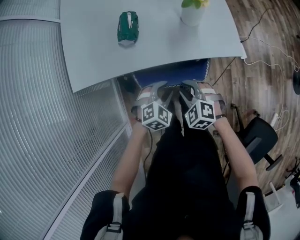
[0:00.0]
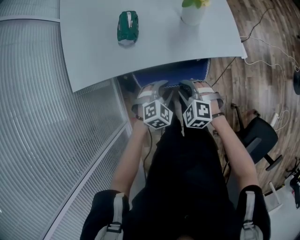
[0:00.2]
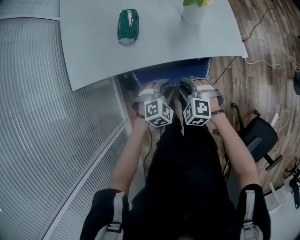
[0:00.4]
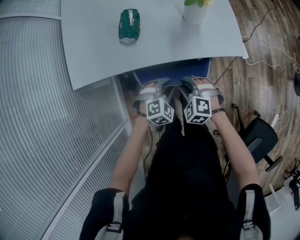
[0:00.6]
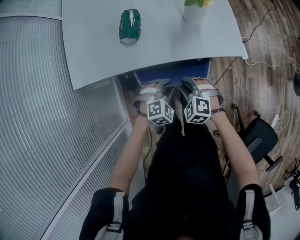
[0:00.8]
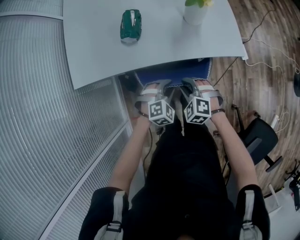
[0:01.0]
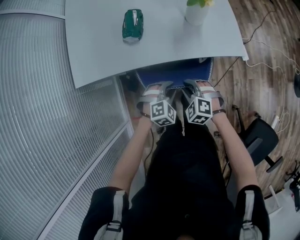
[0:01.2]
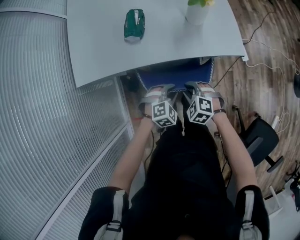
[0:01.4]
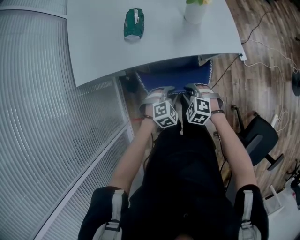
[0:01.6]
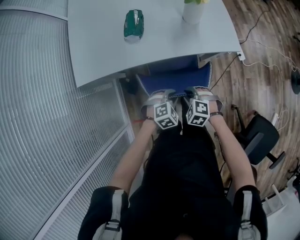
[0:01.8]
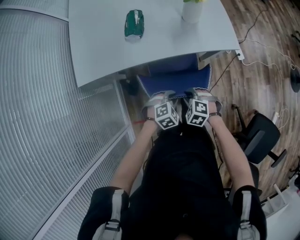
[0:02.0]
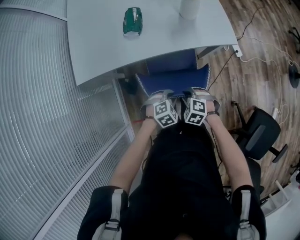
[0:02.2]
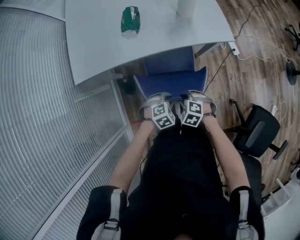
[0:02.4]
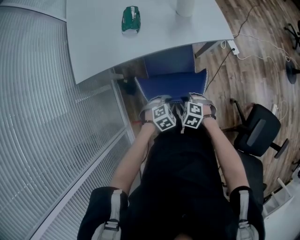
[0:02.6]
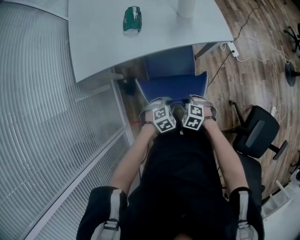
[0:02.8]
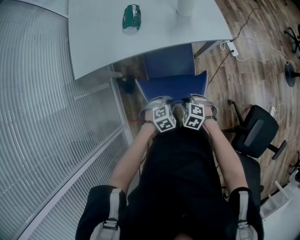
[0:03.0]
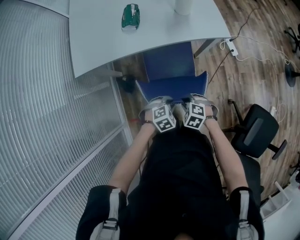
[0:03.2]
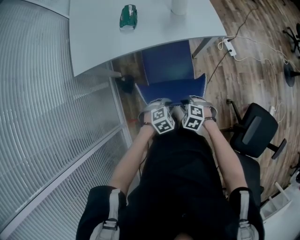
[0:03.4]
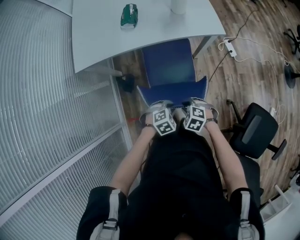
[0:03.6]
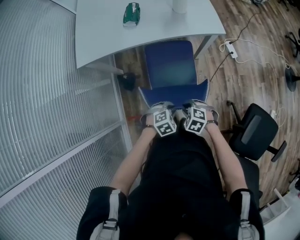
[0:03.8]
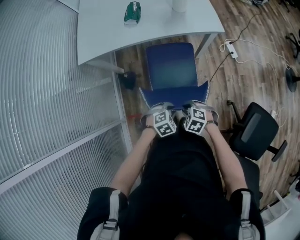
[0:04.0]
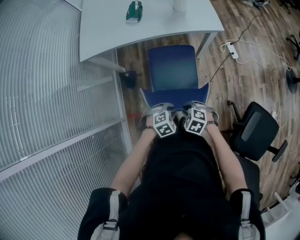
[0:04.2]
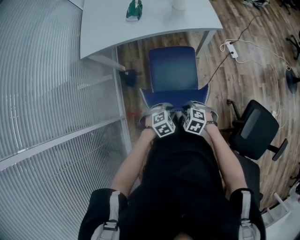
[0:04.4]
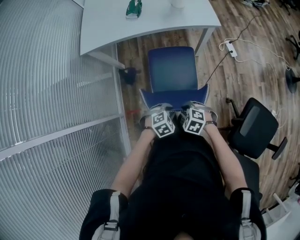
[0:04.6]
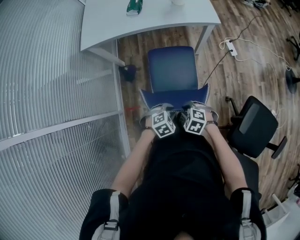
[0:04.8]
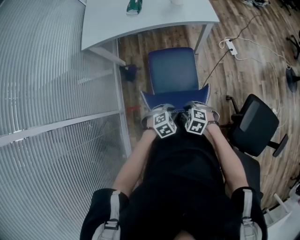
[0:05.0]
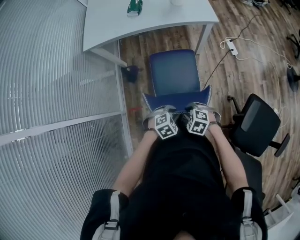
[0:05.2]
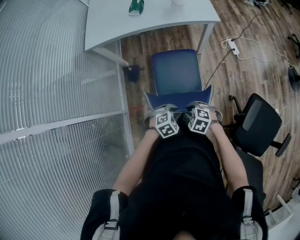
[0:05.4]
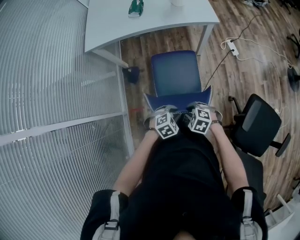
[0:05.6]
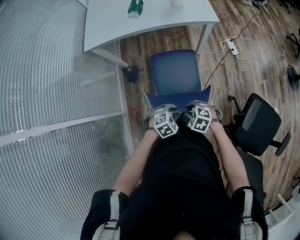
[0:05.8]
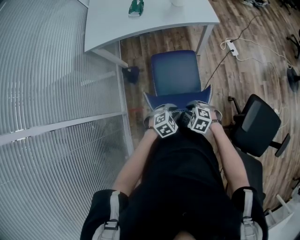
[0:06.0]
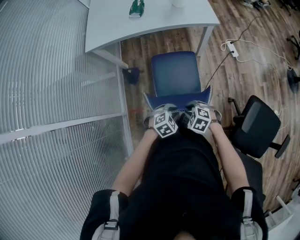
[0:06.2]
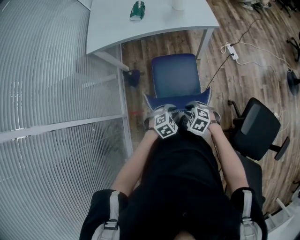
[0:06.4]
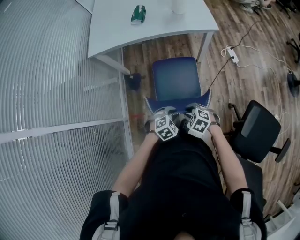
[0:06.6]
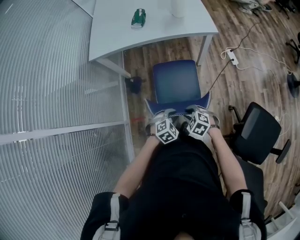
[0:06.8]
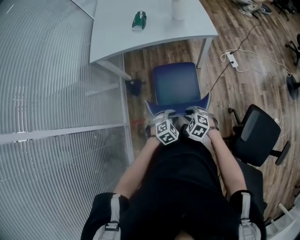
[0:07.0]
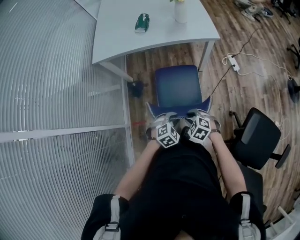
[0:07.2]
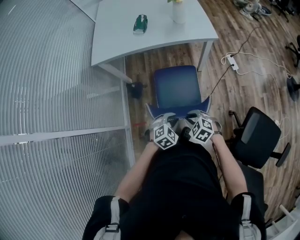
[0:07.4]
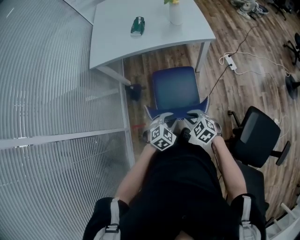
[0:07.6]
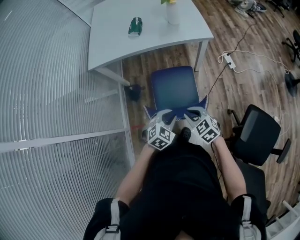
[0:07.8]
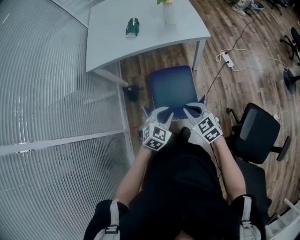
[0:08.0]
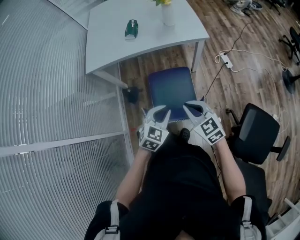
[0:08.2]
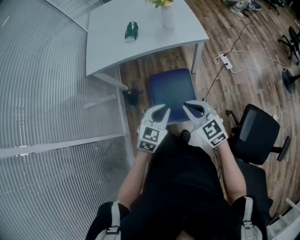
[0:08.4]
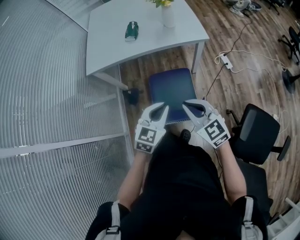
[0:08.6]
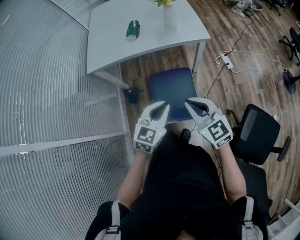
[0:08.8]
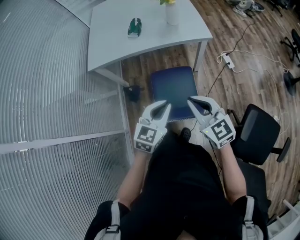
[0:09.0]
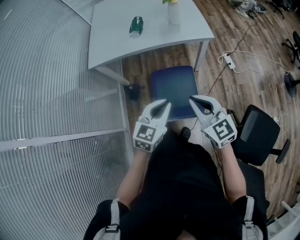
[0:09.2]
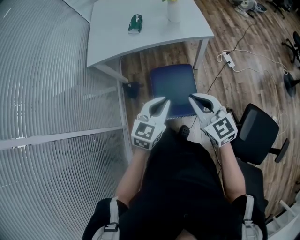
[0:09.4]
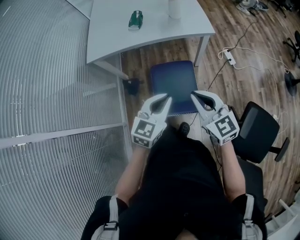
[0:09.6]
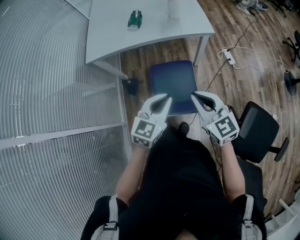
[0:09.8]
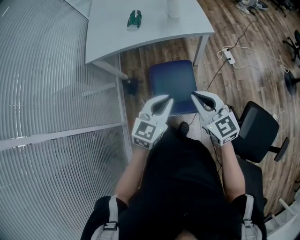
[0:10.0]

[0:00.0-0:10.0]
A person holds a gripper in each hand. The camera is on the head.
0:00.0 to 0:01.4: The right gripper shifts by roughly 5 cm. The left gripper moves some 5 cm.
0:01.4 to 0:02.8: The left gripper moves roughly 15 cm; the right gripper changes place by some 15 cm.
0:02.8 to 0:04.2: The left gripper shifts by some 20 cm; the right gripper ends up some 20 cm from where it was.
0:04.2 to 0:05.8: The left gripper changes place by approximately 10 cm. The right gripper shifts by about 10 cm.
0:05.8 to 0:07.2: There are only small adjustments of the grippers.
0:07.2 to 0:08.6: The grippers both shift upward by approximately 20 cm. The left gripper tips its fingers upward by about 30 degrees. Meanwhile the right gripper tips its fingers upward by about 40 degrees, and closes its fingers.
0:08.6 to 0:10.0: There are only small adjustments of the grippers.

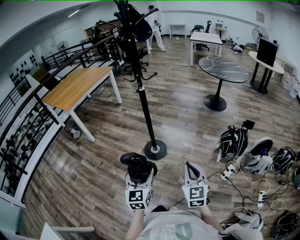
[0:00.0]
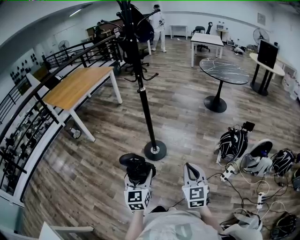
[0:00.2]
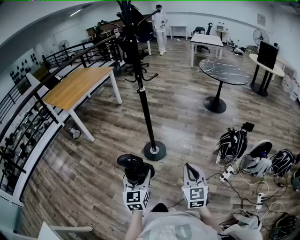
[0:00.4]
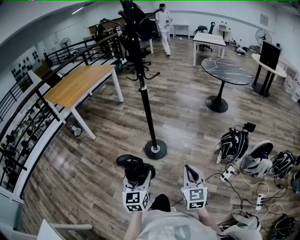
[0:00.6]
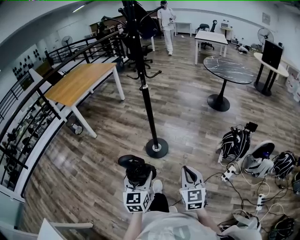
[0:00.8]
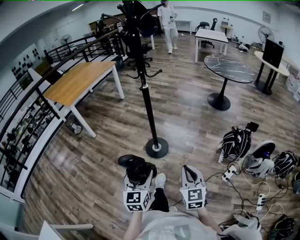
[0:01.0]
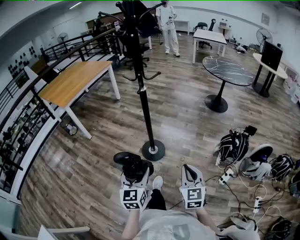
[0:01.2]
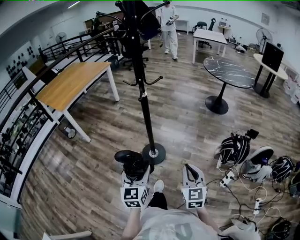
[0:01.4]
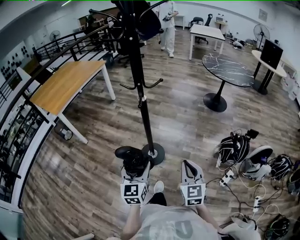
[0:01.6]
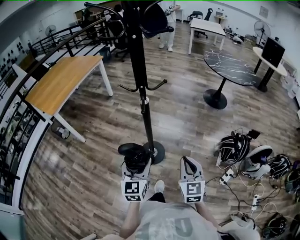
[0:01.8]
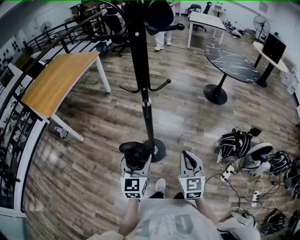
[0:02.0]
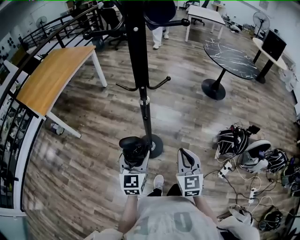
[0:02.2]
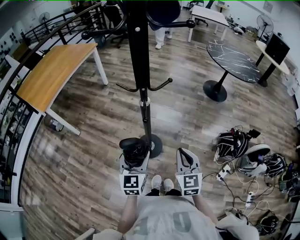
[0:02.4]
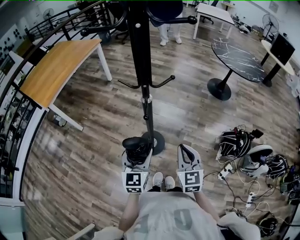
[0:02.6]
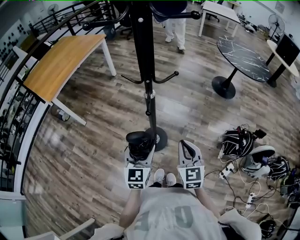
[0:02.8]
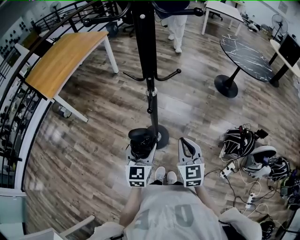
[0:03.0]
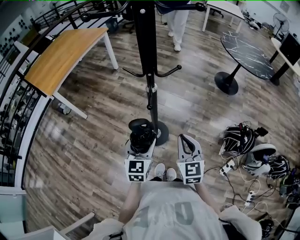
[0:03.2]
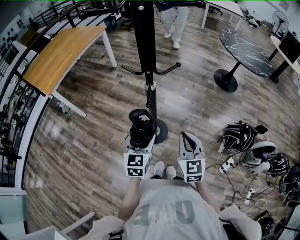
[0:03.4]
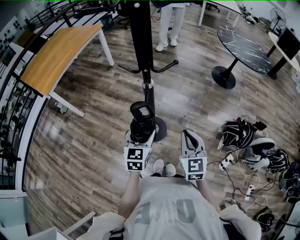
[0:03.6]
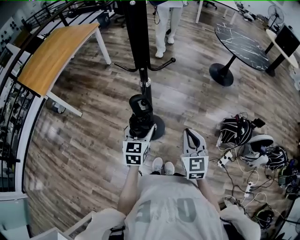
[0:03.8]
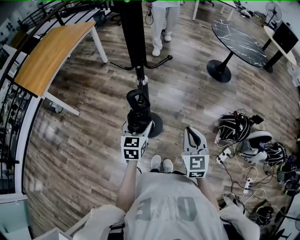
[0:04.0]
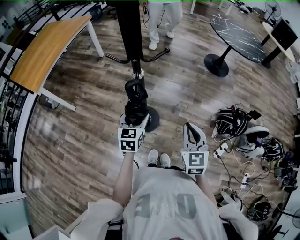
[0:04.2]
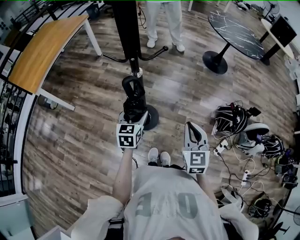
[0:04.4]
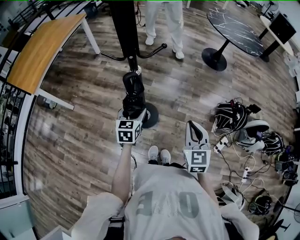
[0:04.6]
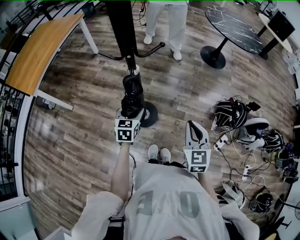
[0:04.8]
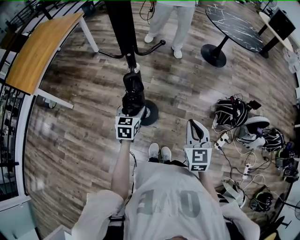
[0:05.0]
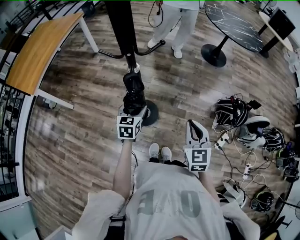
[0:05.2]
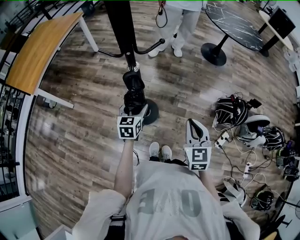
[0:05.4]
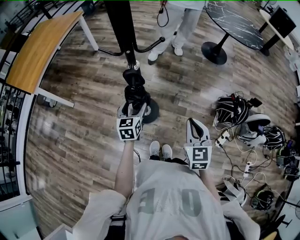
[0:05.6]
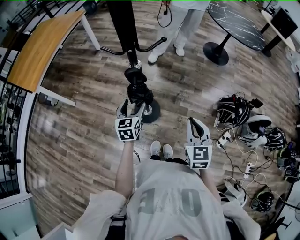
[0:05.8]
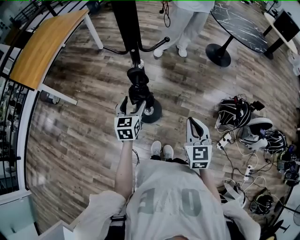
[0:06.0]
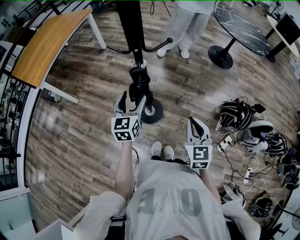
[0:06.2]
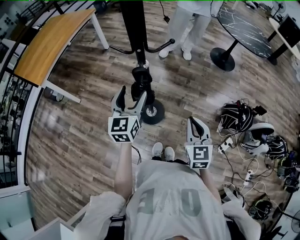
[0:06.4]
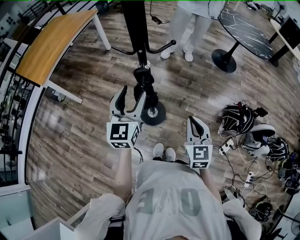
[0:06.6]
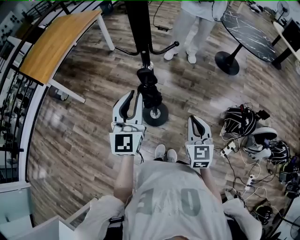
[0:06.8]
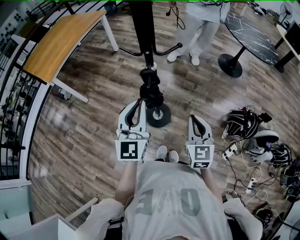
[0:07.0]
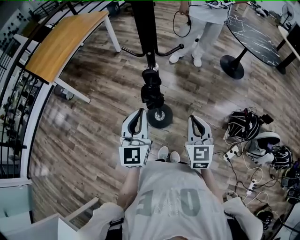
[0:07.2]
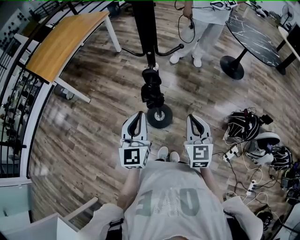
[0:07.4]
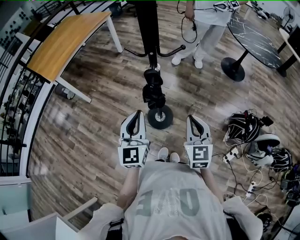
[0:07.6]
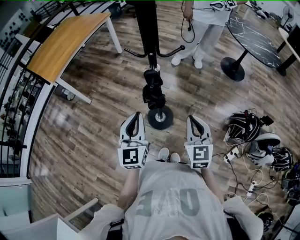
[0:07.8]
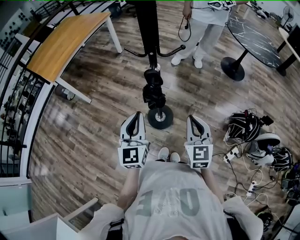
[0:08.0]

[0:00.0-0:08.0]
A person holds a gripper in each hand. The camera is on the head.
0:00.0 to 0:01.6: Both grippers move forward, about 20 cm.
0:01.6 to 0:03.2: The two grippers go approximately 15 cm forward.
0:03.2 to 0:04.8: The left gripper is displaced downward and forward by about 15 cm. Meanwhile the right gripper is displaced to the right by approximately 10 cm.
0:04.8 to 0:06.4: The left gripper moves upward, about 15 cm, and swivels approximately 30 degrees.
0:06.4 to 0:08.0: The left gripper heads backward, covering roughly 10 cm, and closes.

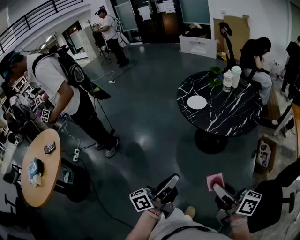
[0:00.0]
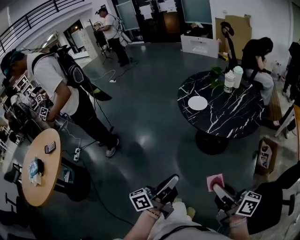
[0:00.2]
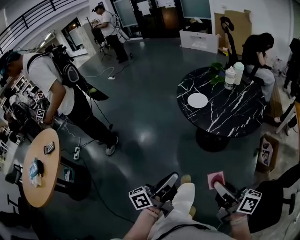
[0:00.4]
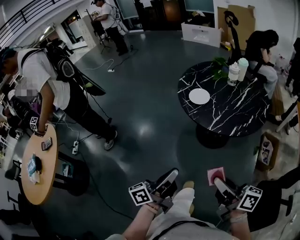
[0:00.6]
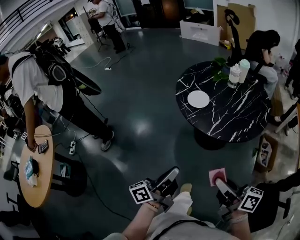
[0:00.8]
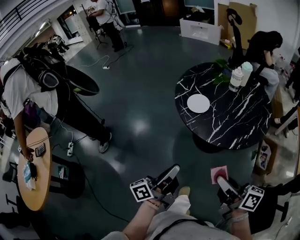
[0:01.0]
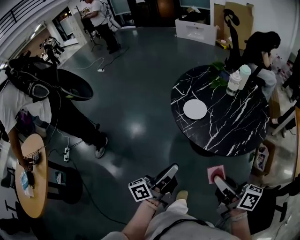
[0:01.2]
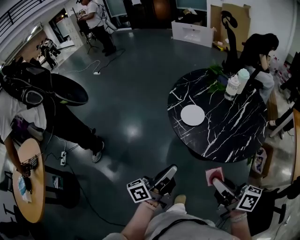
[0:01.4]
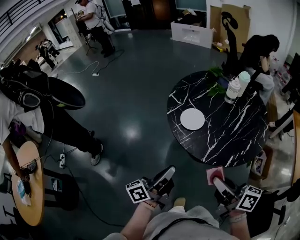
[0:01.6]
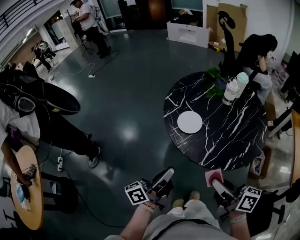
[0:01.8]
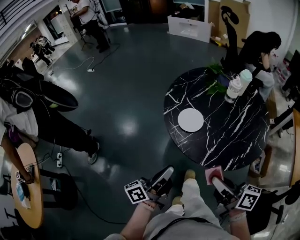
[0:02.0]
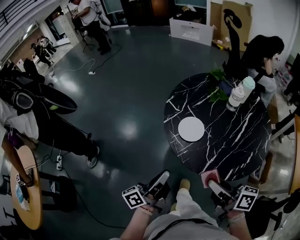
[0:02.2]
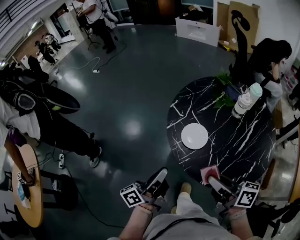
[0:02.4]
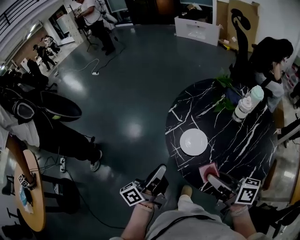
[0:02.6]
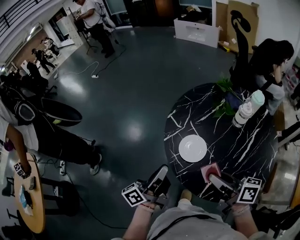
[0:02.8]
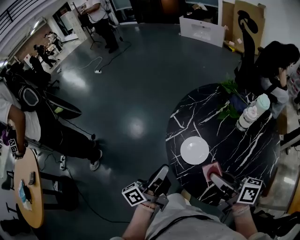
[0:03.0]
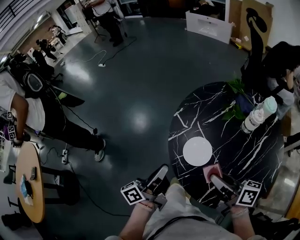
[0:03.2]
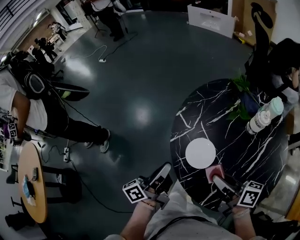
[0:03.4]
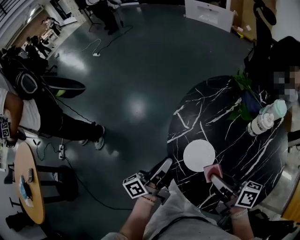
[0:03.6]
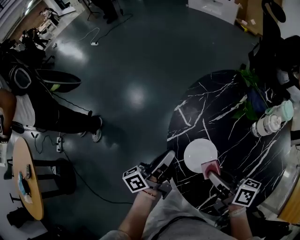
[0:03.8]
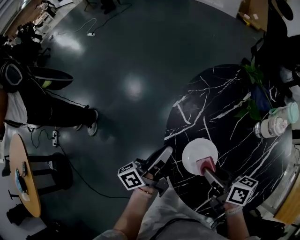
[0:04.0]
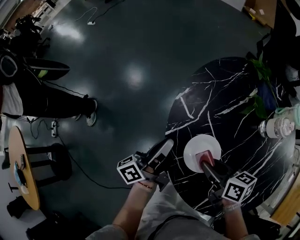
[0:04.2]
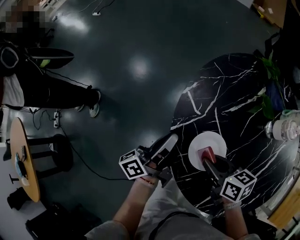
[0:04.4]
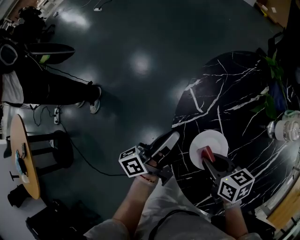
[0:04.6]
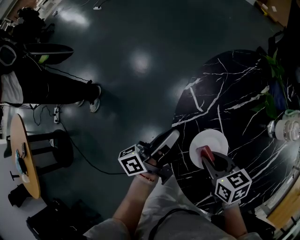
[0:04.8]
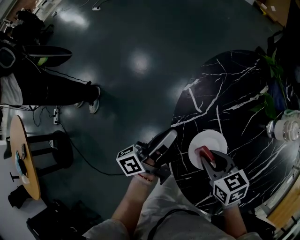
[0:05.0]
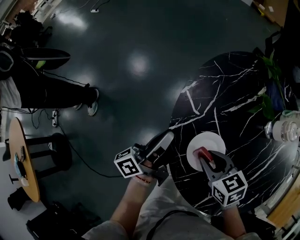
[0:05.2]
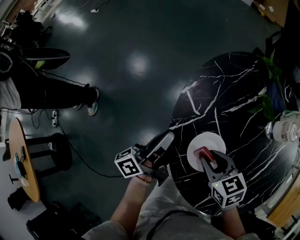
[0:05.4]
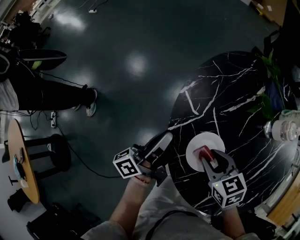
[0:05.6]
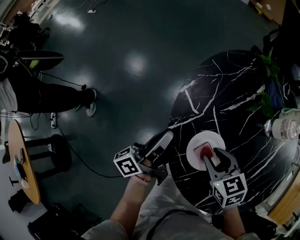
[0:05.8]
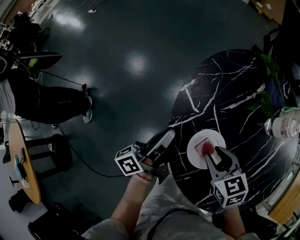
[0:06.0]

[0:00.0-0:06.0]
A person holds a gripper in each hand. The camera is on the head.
0:00.0 to 0:01.6: The two grippers go about 30 cm forward.
0:01.6 to 0:03.0: The two grippers go about 25 cm forward.
0:03.0 to 0:04.4: The left gripper shifts approximately 20 cm forward and downward. The right gripper is displaced downward and forward by approximately 20 cm, and swivels about 30 degrees.
0:04.4 to 0:06.0: The right gripper turns by roughly 30 degrees.
